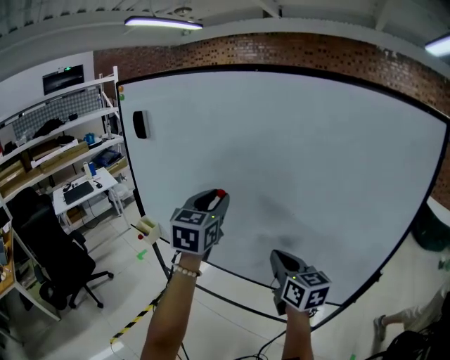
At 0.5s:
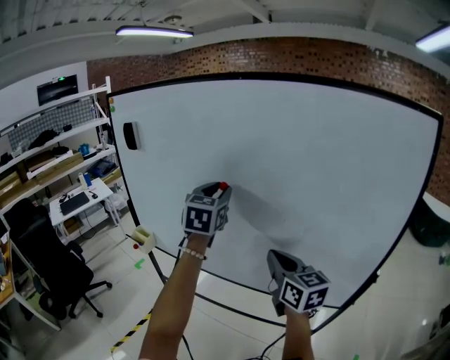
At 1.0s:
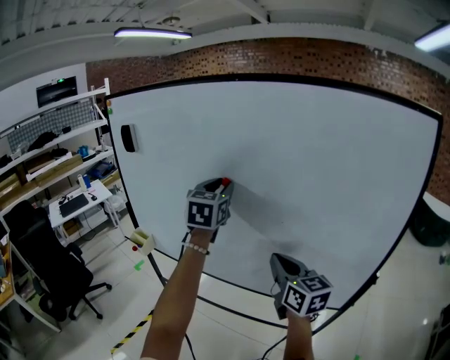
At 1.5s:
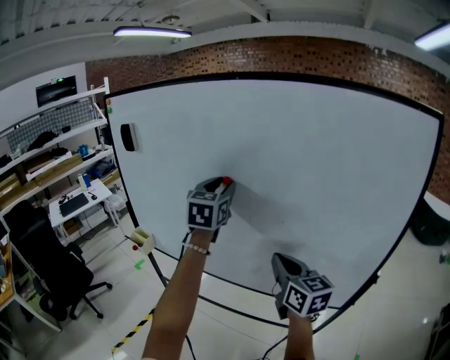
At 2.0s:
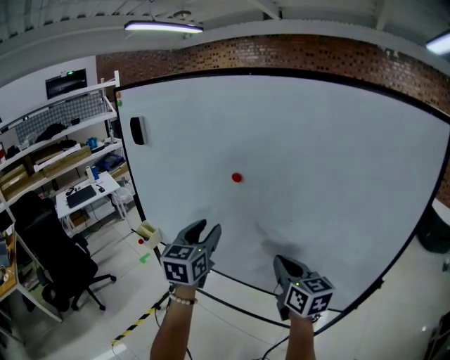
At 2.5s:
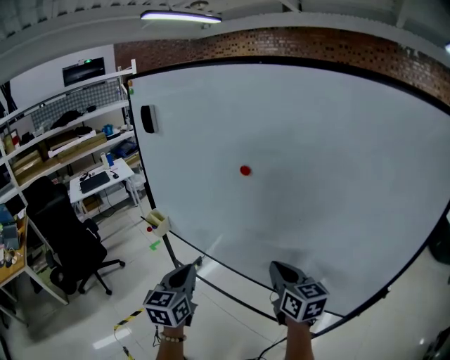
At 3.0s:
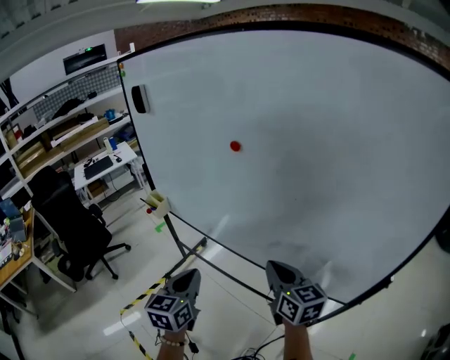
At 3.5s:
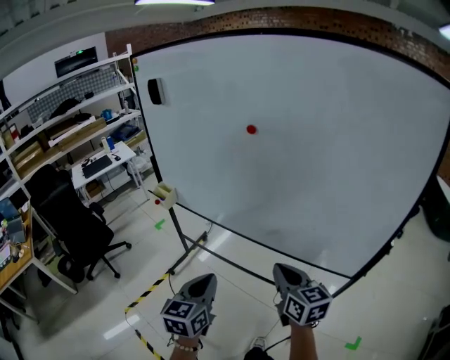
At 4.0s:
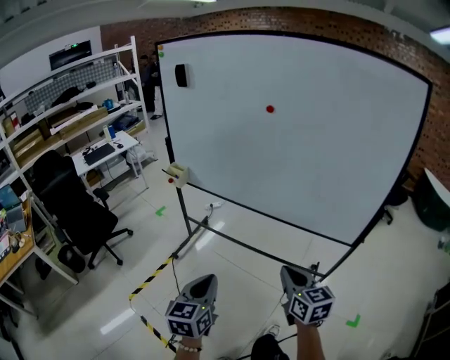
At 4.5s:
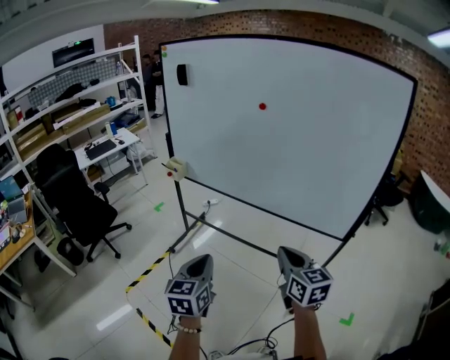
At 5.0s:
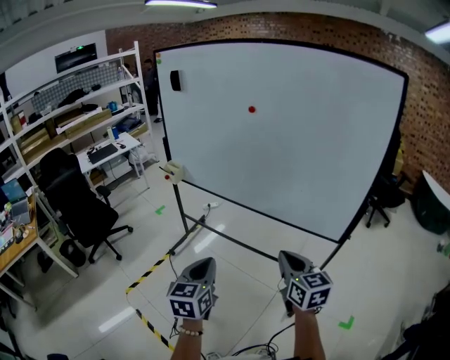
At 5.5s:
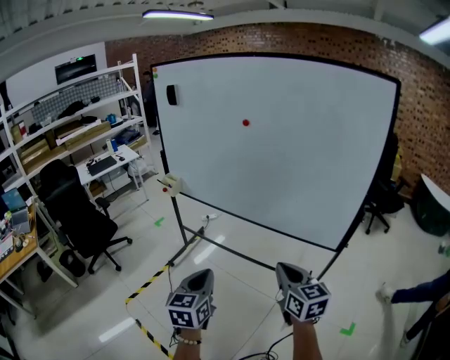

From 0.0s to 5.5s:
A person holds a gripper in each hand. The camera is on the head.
From 0.0s to 2.0s: The left gripper travels downward by roughly 5 cm.
From 2.0s to 3.5s: The left gripper heads backward and downward, covering some 30 cm, and closes its fingers. The right gripper moves backward and downward, some 15 cm.
From 3.5s to 5.5s: Both grippers move backward, roughly 20 cm.

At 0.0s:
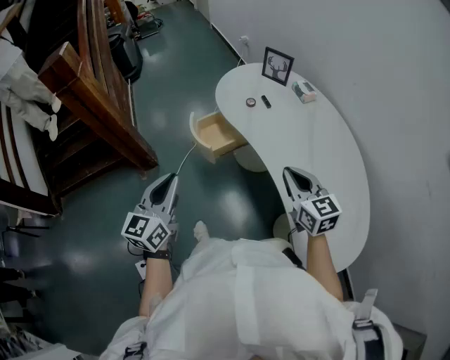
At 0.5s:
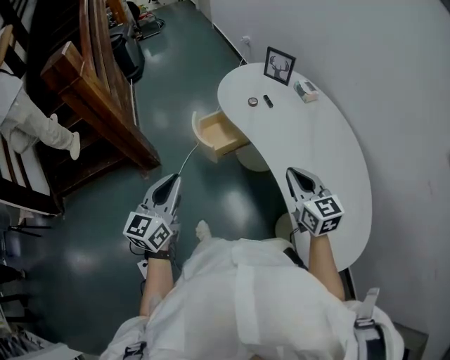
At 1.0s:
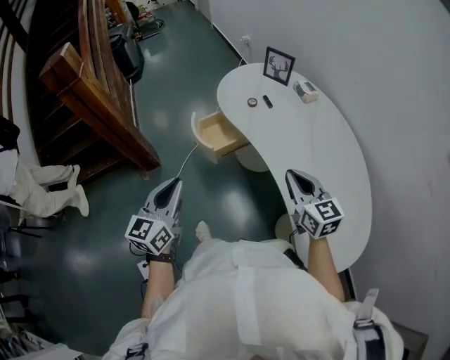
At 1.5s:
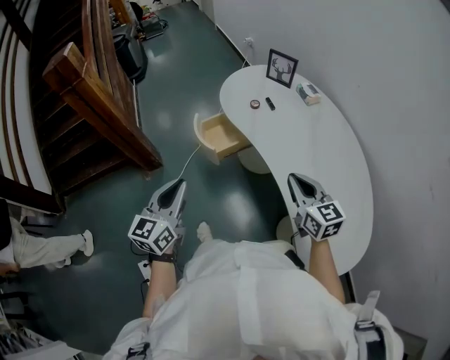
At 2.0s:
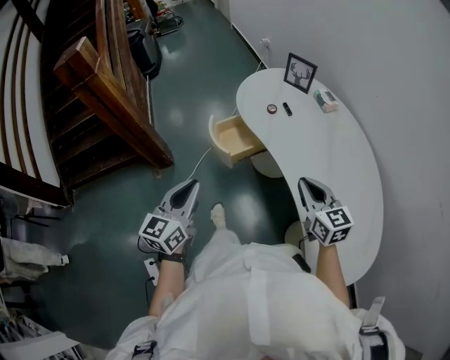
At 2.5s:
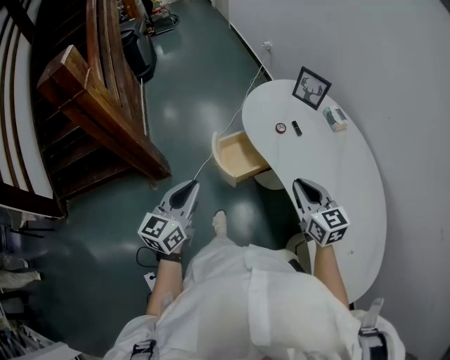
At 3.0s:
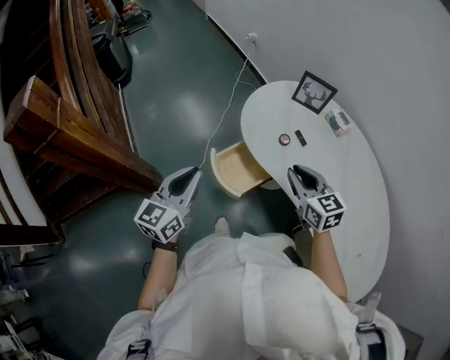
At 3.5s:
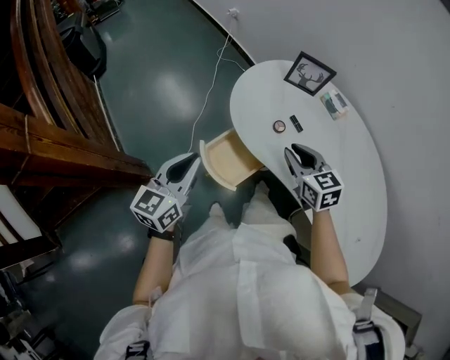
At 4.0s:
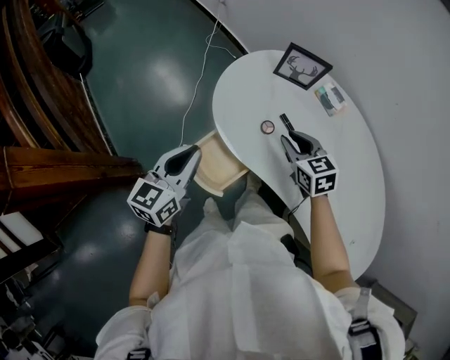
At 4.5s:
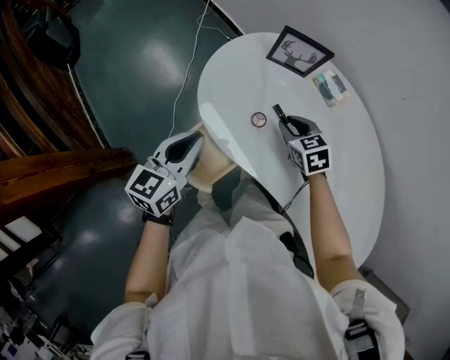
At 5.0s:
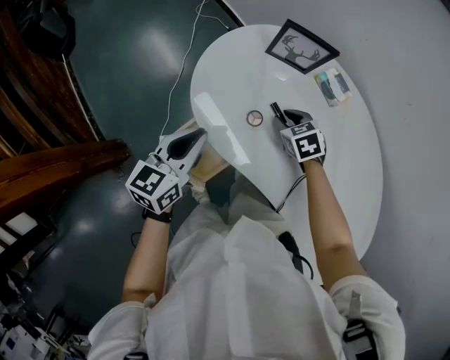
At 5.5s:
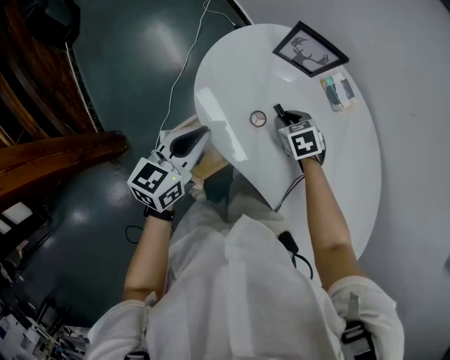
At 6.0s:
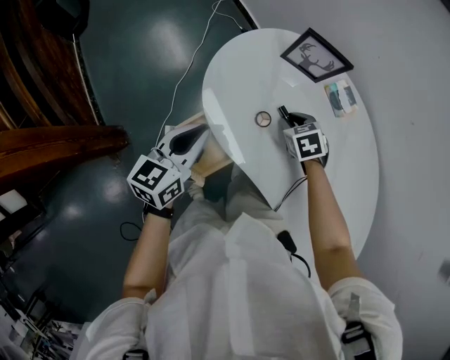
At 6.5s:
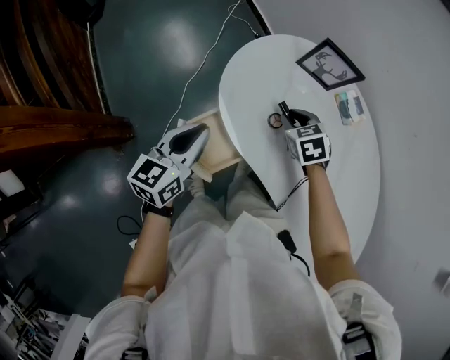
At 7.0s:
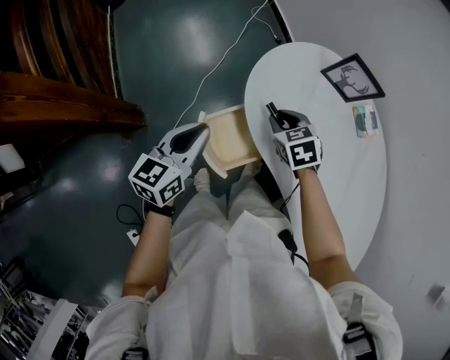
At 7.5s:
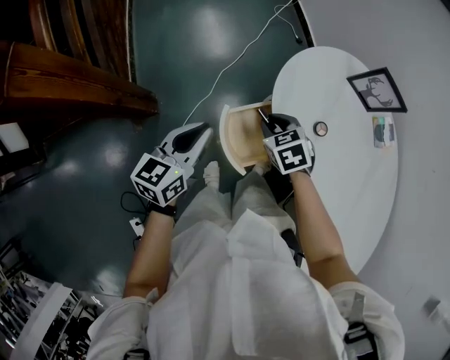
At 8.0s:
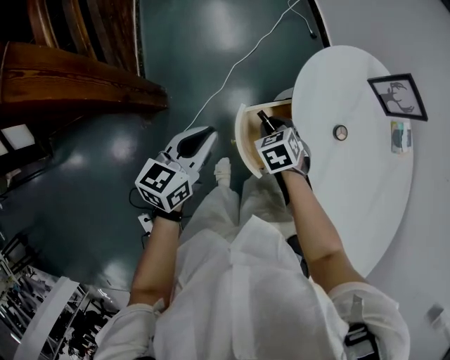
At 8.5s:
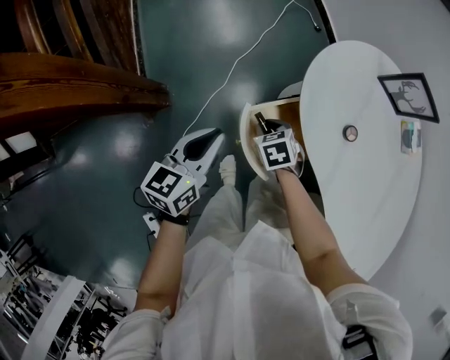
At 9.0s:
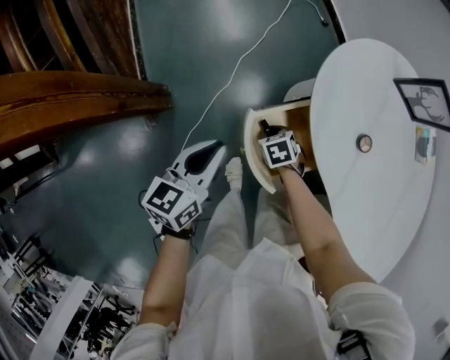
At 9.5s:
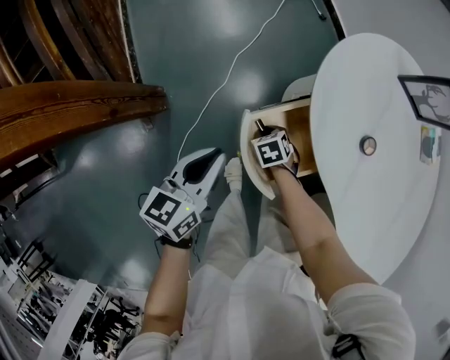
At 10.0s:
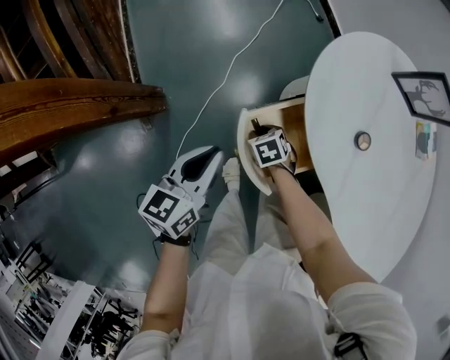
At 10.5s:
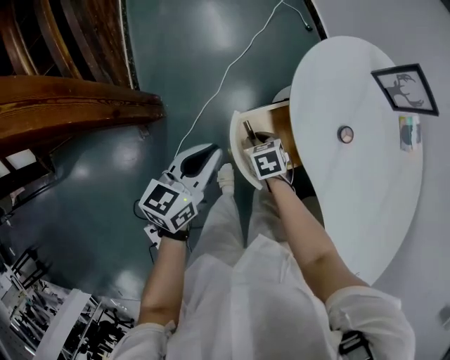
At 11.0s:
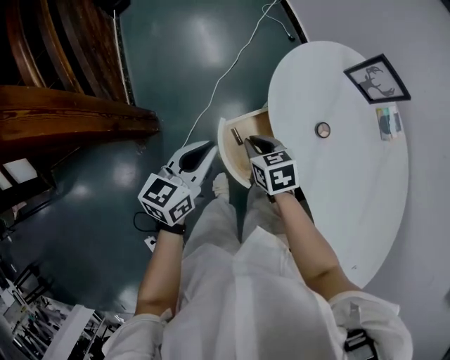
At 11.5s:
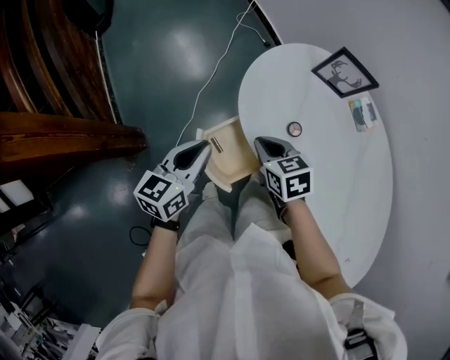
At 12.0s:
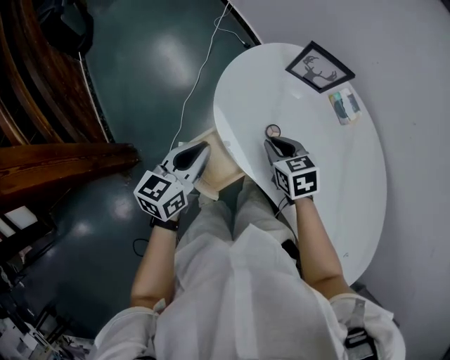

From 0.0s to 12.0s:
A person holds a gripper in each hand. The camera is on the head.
From 0.0s to 2.0s: The grippers make only small movements.
From 2.0s to 4.0s: The grippers both shift forward by about 40 cm. The left gripper turns by roughly 30 degrees. The right gripper changes its angle by some 20 degrees.
From 4.0s to 6.0s: The right gripper heads downward and forward, covering about 15 cm, and swivels roughly 30 degrees. Meanwhile the left gripper goes some 10 cm forward, to the right and downward.
From 6.0s to 8.0s: The right gripper heads to the left, covering roughly 30 cm, and rotates roughly 20 degrees, while the left gripper travels to the left and backward by some 20 cm.
From 8.0s to 10.0s: The left gripper is displaced downward by roughly 5 cm. Meanwhile the right gripper moves downward, roughly 20 cm, and rotates some 20 degrees.
From 10.0s to 12.0s: The right gripper moves upward, roughly 30 cm, and turns by some 30 degrees, while the left gripper moves roughly 20 cm.

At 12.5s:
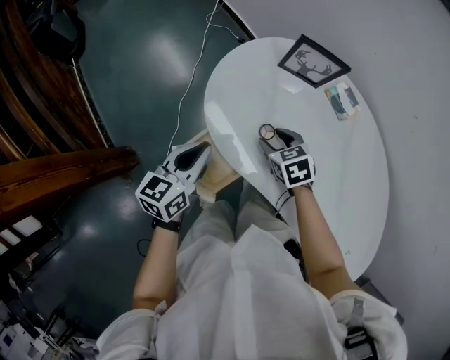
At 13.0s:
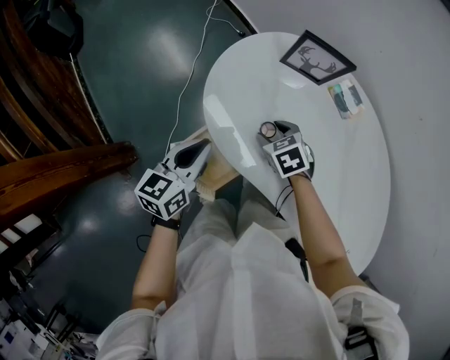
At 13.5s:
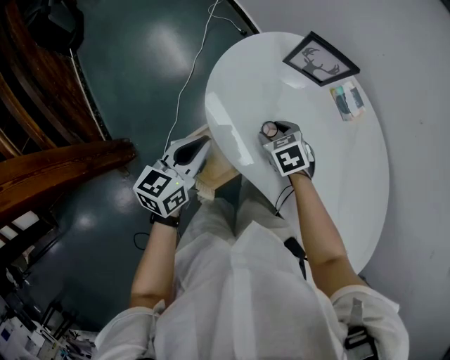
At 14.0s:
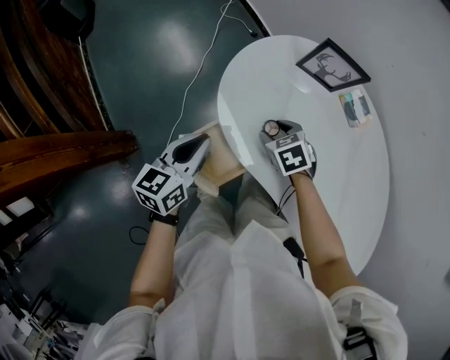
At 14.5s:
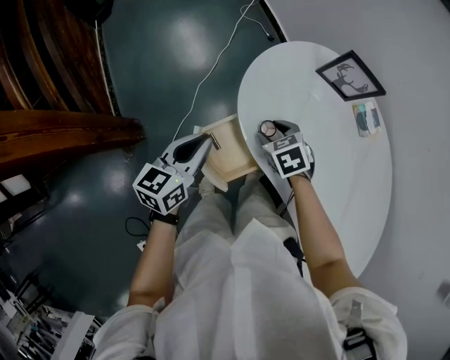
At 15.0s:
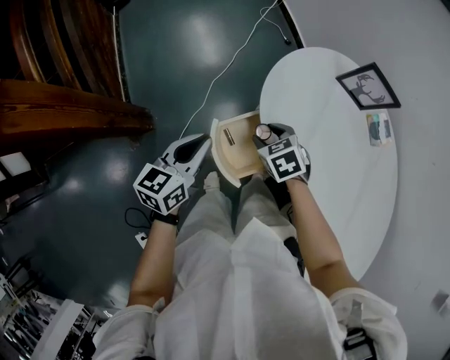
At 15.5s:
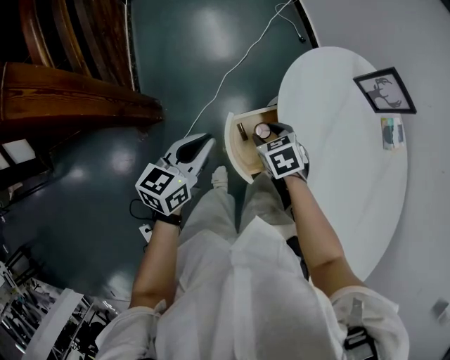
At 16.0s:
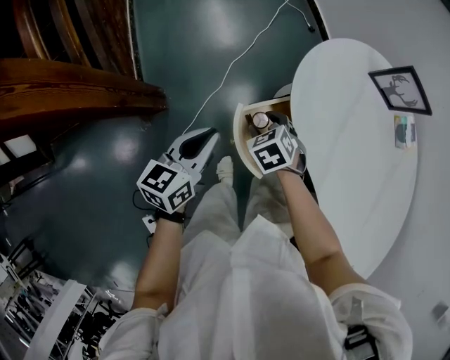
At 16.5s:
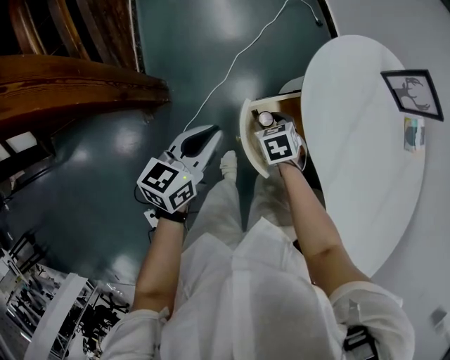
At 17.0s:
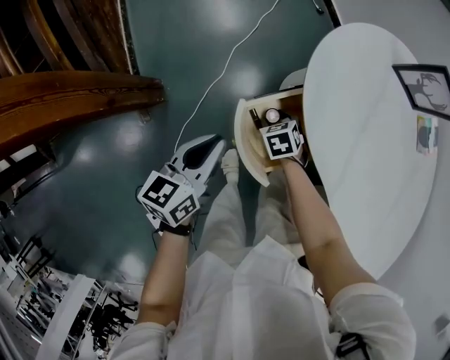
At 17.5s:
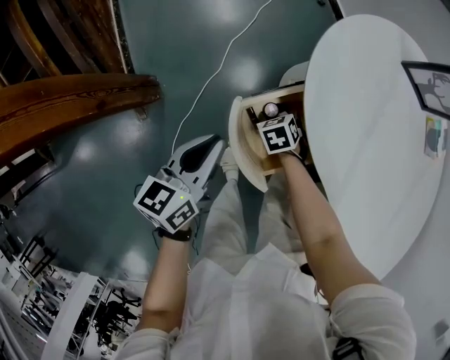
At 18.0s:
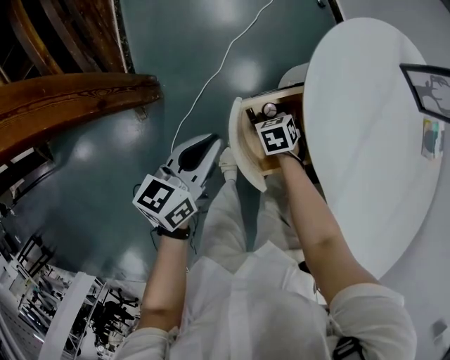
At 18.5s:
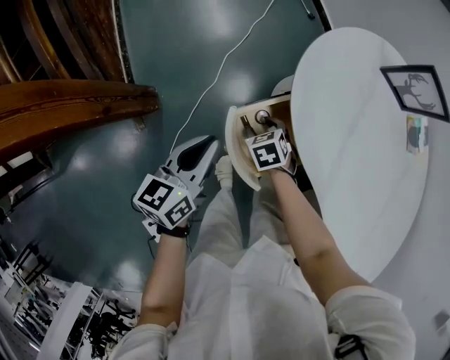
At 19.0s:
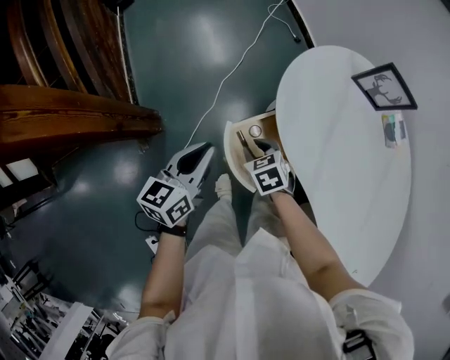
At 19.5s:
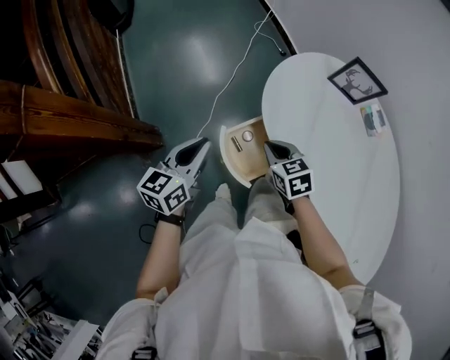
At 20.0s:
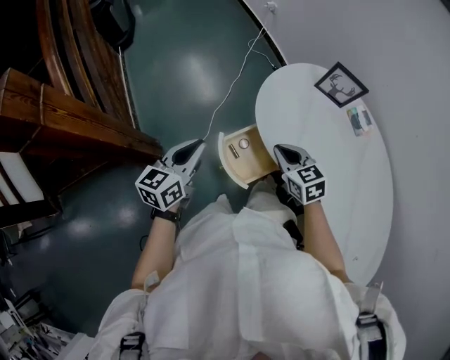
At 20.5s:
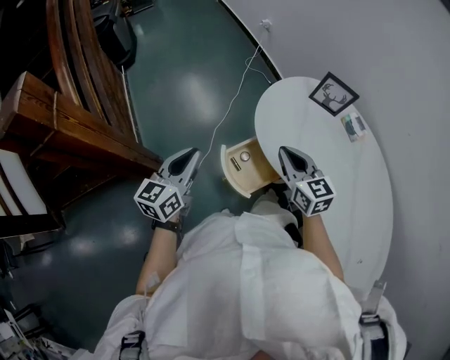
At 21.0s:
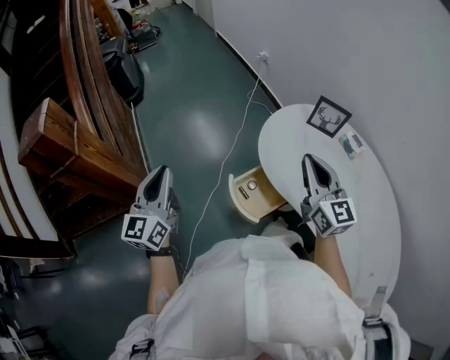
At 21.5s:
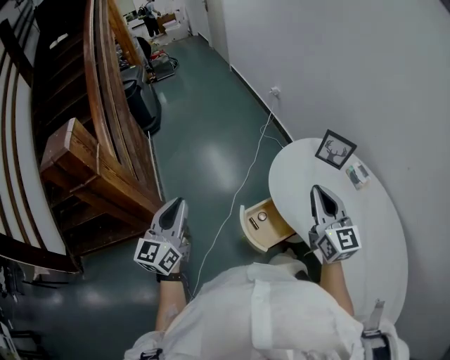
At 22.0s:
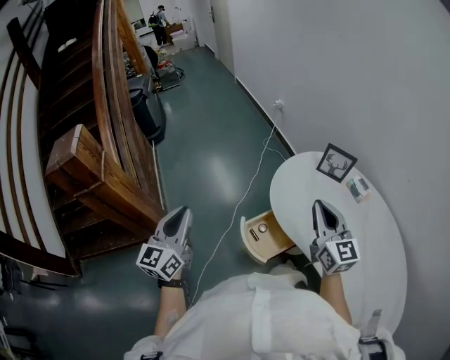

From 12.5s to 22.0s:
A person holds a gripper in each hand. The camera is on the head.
From 12.5s to 14.5s: Both grippers move to the left, approximately 10 cm.
From 14.5s to 16.5s: The left gripper travels to the left by about 10 cm. Meanwhile the right gripper is displaced to the left and downward by about 20 cm.
From 16.5s to 18.0s: The left gripper heads downward, covering approximately 5 cm. Meanwhile the right gripper goes approximately 10 cm downward.
From 18.0s to 20.0s: The right gripper goes about 35 cm upward, angles its fingers upward, by some 30 degrees, and closes; the left gripper is displaced upward by roughly 20 cm.
From 20.0s to 22.0s: The left gripper moves upward and to the left, about 20 cm, and rotates about 30 degrees; the right gripper is displaced upward by about 20 cm, and points its fingers about 40 degrees further upward.
